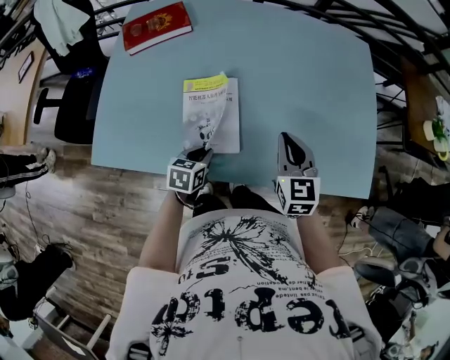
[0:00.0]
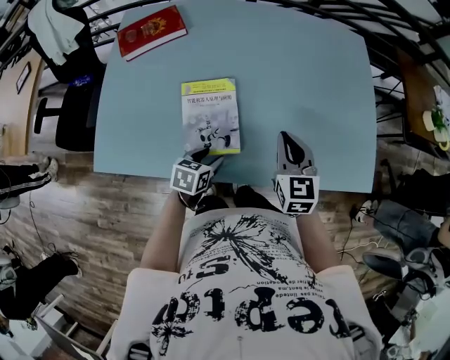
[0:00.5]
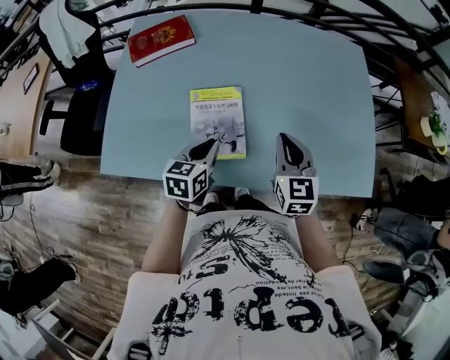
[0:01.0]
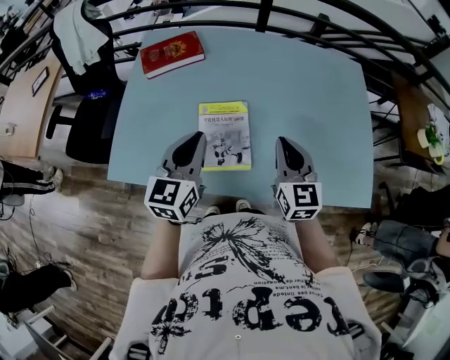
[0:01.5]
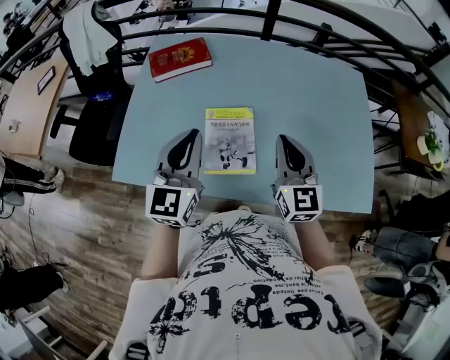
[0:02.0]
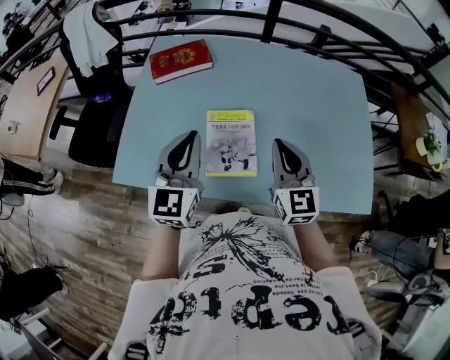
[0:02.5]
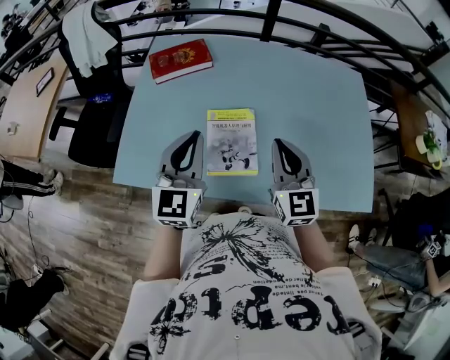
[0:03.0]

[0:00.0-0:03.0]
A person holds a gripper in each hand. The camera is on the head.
0:00.0 to 0:01.5: The right gripper shifts roughly 5 cm upward. The left gripper travels upward by approximately 25 cm, angles its fingers upward, by some 40 degrees, and opens and closes again.
0:01.5 to 0:03.0: The right gripper shifts some 5 cm to the left, while the left gripper moves approximately 5 cm.

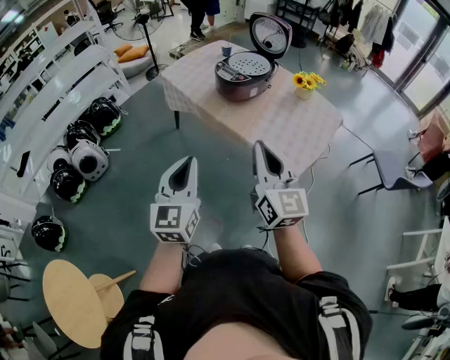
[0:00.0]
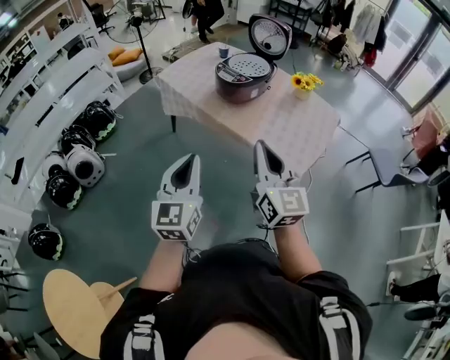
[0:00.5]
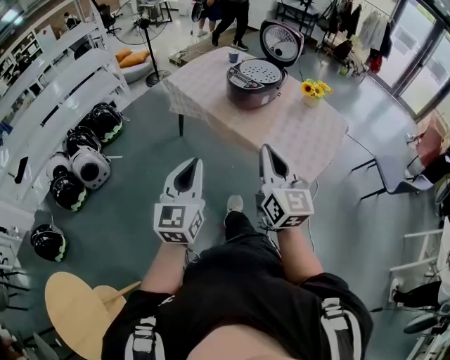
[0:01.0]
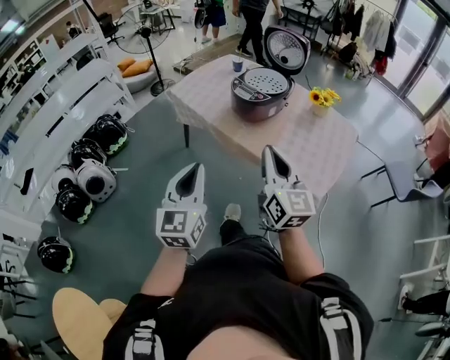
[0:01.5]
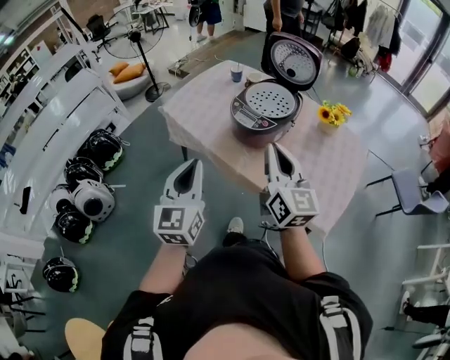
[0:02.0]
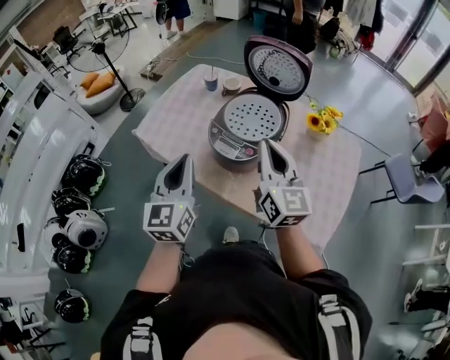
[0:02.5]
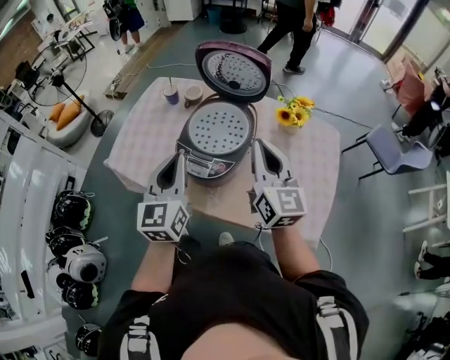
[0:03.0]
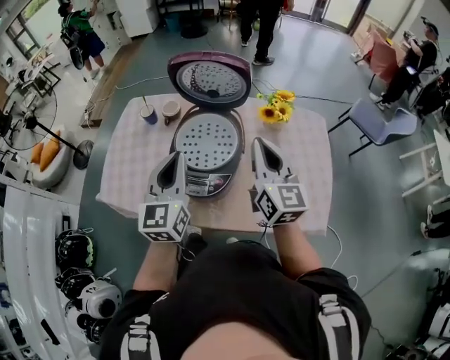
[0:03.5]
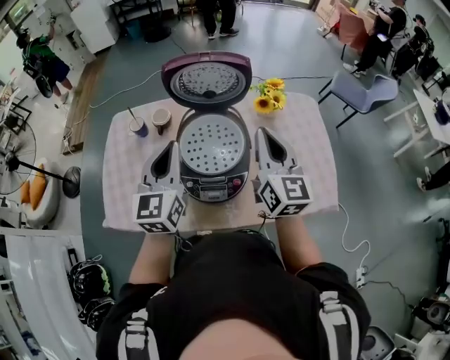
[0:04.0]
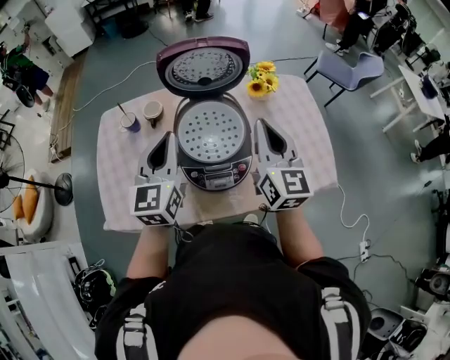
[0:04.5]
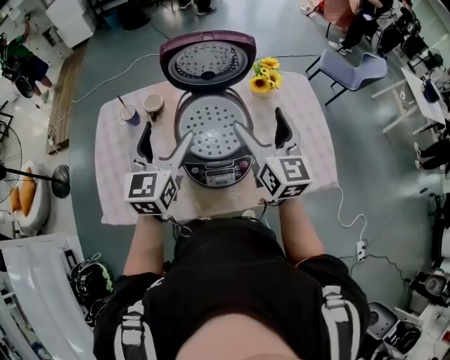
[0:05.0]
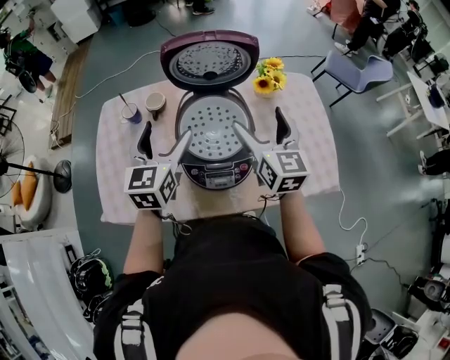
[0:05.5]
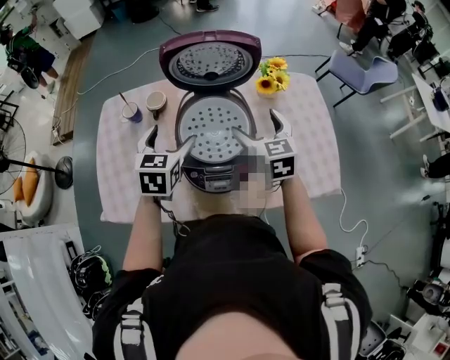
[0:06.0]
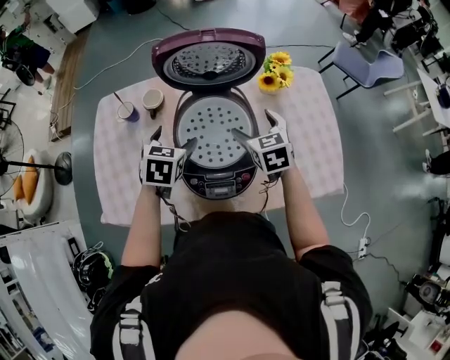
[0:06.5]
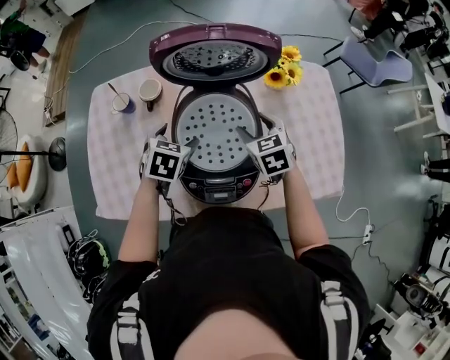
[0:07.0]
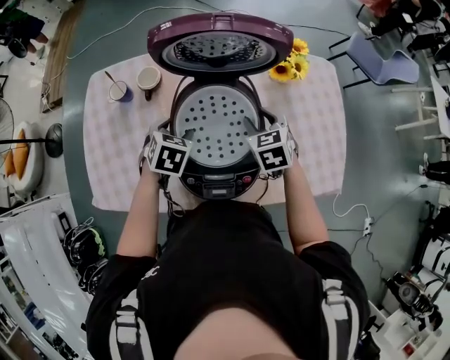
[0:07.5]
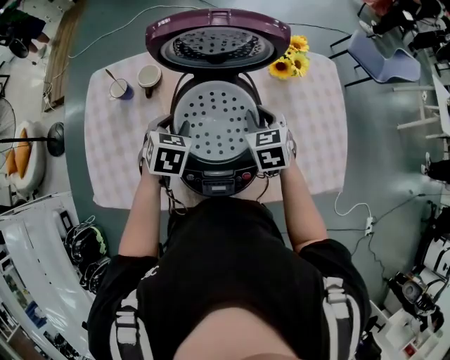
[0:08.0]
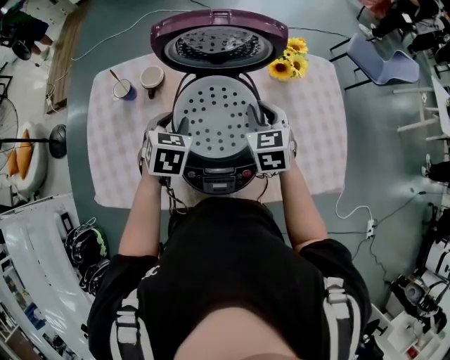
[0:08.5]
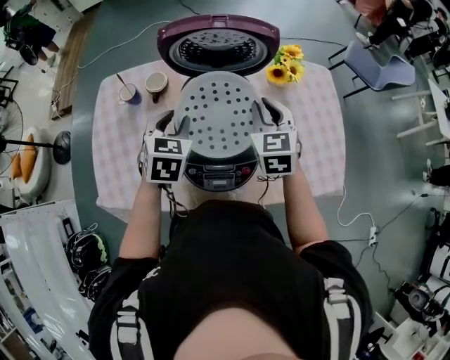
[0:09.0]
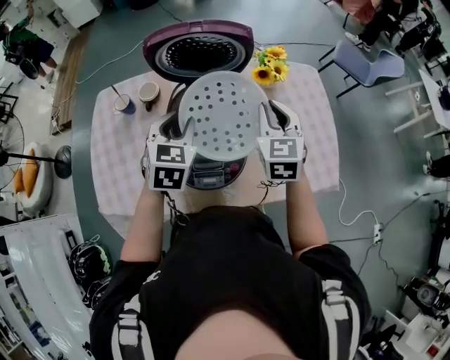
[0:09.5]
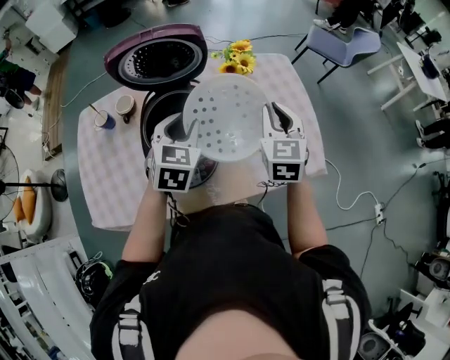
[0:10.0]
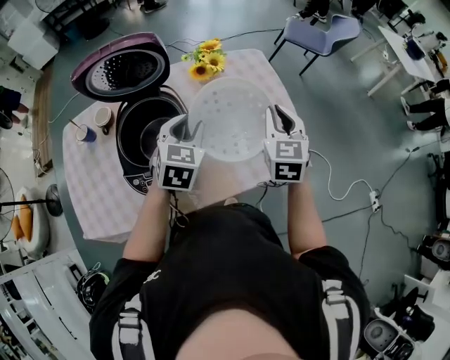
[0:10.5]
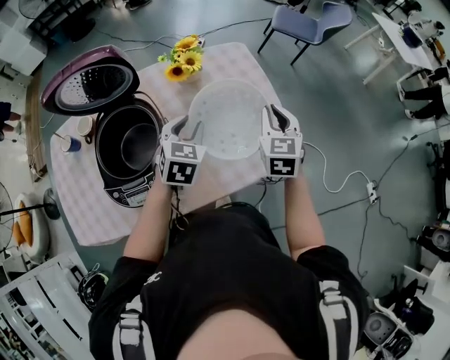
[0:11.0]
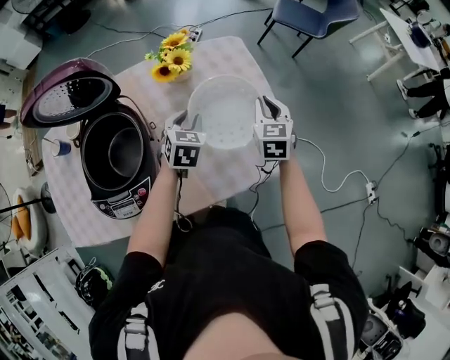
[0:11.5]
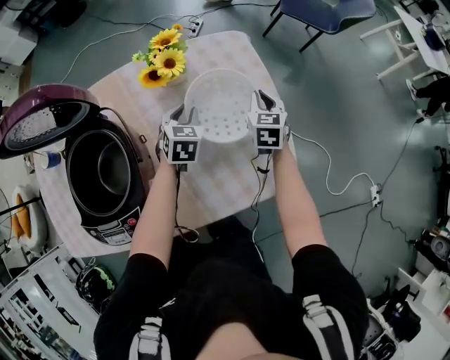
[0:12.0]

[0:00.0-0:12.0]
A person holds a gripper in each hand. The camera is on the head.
0:00.0 to 0:02.0: Both grippers move forward, roughly 30 cm.
0:02.0 to 0:04.0: The right gripper shifts by about 30 cm, and turns by approximately 40 degrees. Meanwhile the left gripper moves roughly 50 cm, and turns by some 40 degrees.
0:04.0 to 0:06.0: Both grippers travel together downward and forward, about 15 cm. The left gripper turns by about 30 degrees, and opens. The right gripper turns by about 30 degrees, and opens its fingers.
0:06.0 to 0:08.0: Both grippers travel together downward and forward, approximately 10 cm. The right gripper closes up, while the left gripper swivels some 20 degrees, and closes its fingers.
0:08.0 to 0:10.0: The right gripper moves to the right, upward and backward, approximately 25 cm, and changes its angle by about 30 degrees. Meanwhile the left gripper shifts about 20 cm to the right and upward, and turns by roughly 20 degrees.
0:10.0 to 0:12.0: The two grippers go some 40 cm downward, forward and to the right.

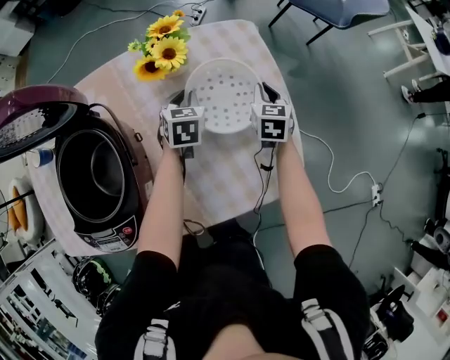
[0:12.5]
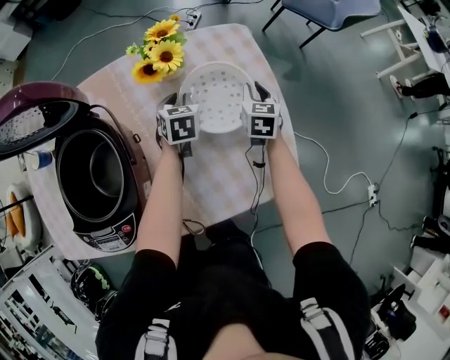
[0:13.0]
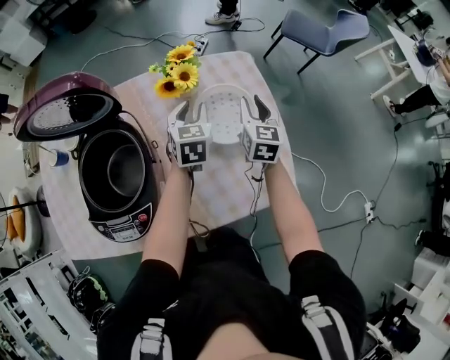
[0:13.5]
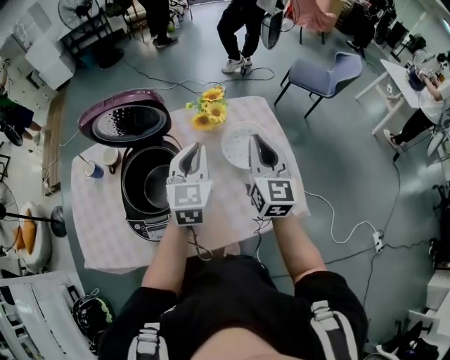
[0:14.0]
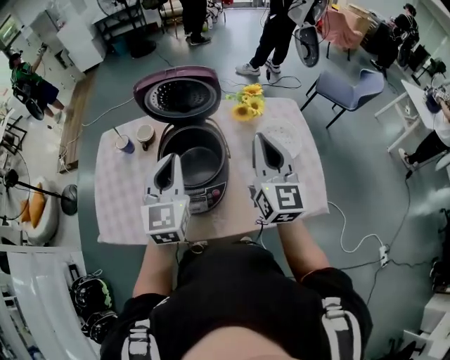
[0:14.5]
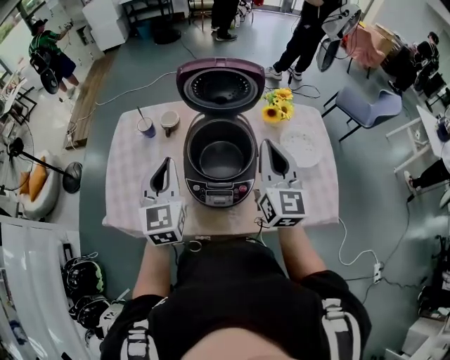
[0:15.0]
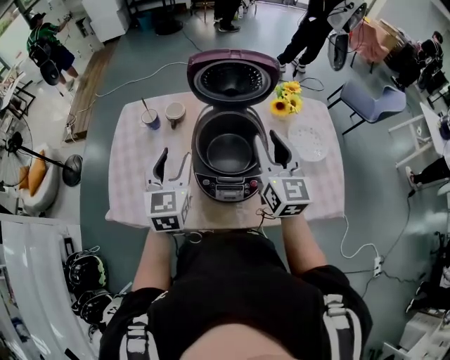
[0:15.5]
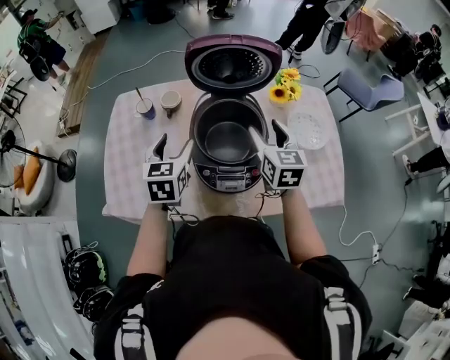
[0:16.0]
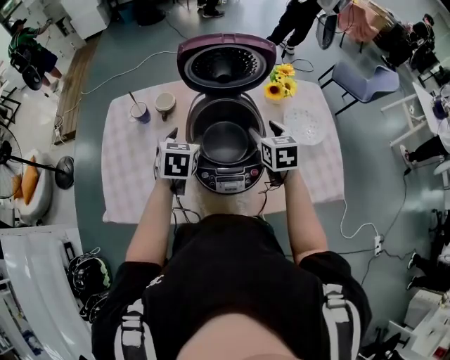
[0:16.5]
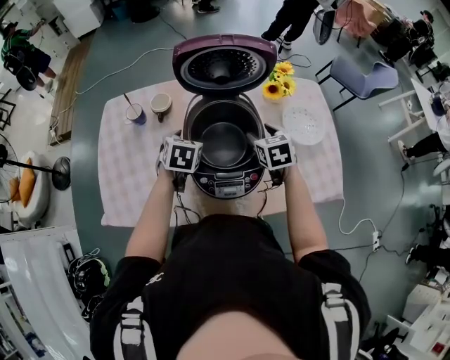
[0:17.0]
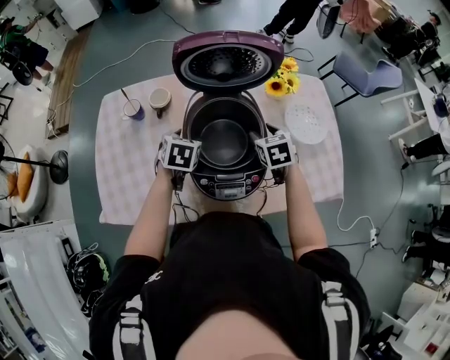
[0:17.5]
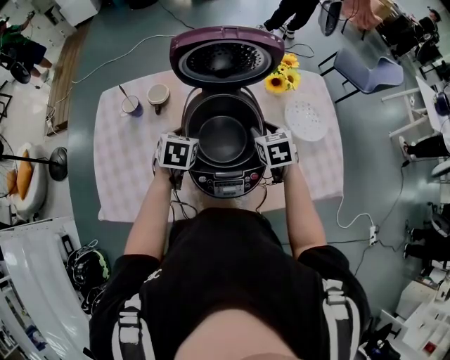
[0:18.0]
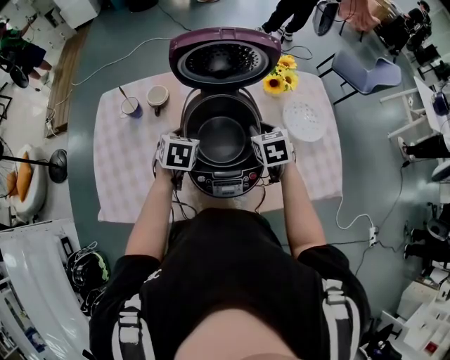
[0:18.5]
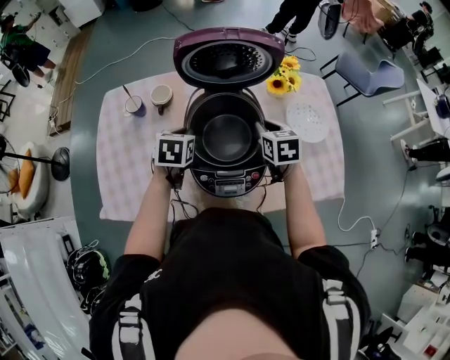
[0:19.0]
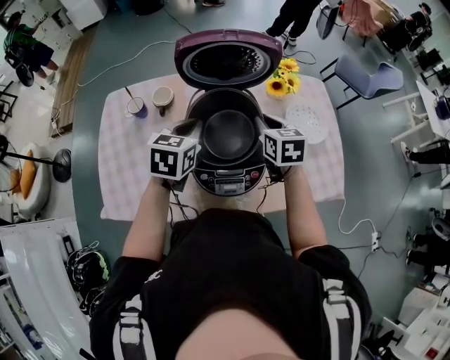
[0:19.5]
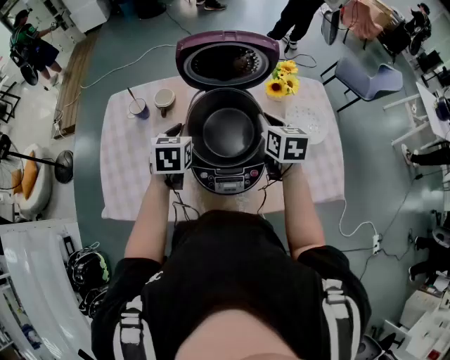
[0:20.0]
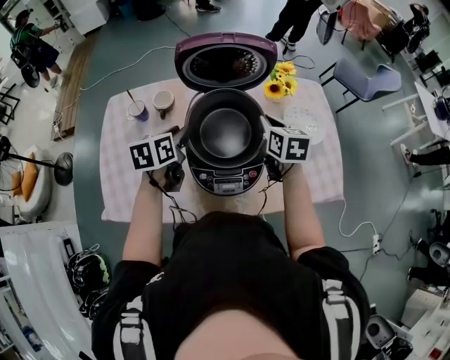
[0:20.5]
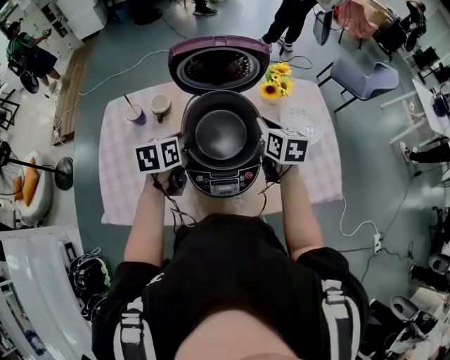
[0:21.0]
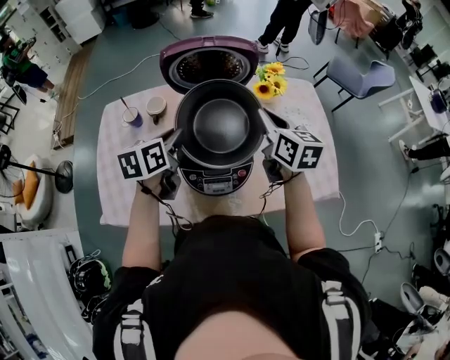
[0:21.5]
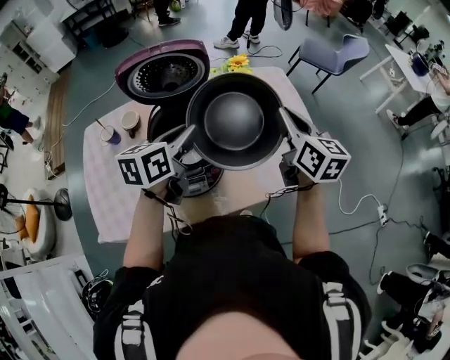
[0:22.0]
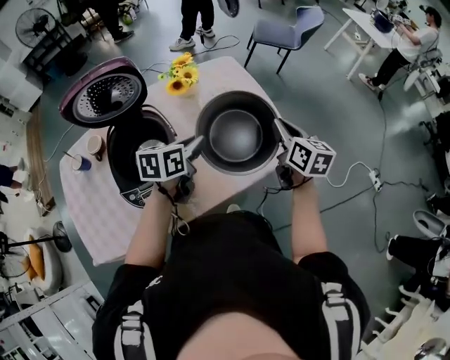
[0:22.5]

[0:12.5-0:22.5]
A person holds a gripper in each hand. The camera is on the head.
0:12.5 to 0:14.5: The left gripper moves upward, backward and to the left, some 50 cm, and points its fingers roughly 40 degrees further upward, while the right gripper shifts some 50 cm upward, to the left and backward, and tilts its fingers about 40 degrees upward.
0:14.5 to 0:16.5: Both grippers move downward, to the left and forward, roughly 25 cm. The right gripper tips its fingers downward by roughly 40 degrees, and opens; the left gripper angles its fingers downward, by approximately 30 degrees, and opens.
0:16.5 to 0:18.5: The grippers both shift downward by some 5 cm.
0:18.5 to 0:20.5: Both grippers travel together upward, some 10 cm. The right gripper turns by some 20 degrees, while the left gripper rotates about 30 degrees.
0:20.5 to 0:22.5: The left gripper moves approximately 10 cm upward and comes back, and changes its angle by about 30 degrees, while the right gripper travels upward and back again, roughly 10 cm each way, and rotates some 30 degrees.

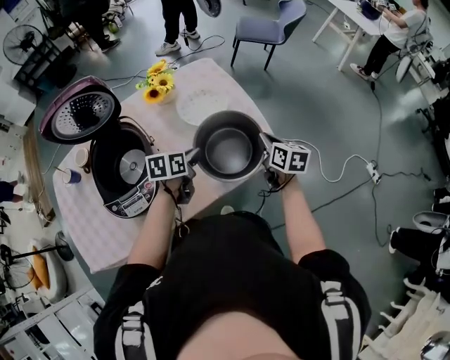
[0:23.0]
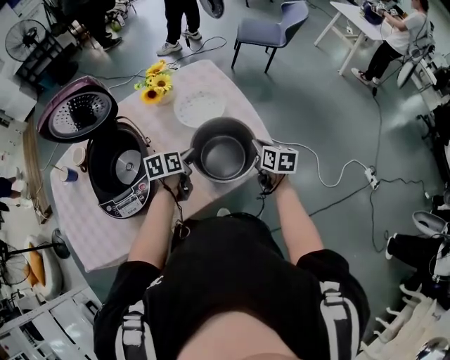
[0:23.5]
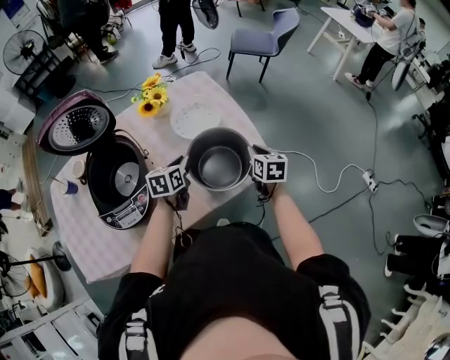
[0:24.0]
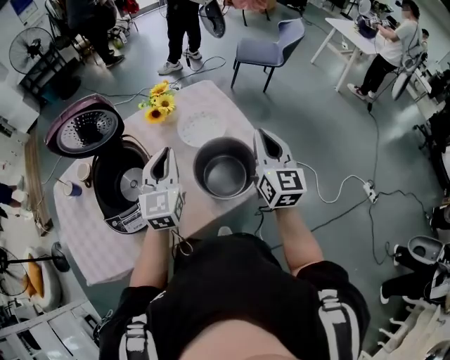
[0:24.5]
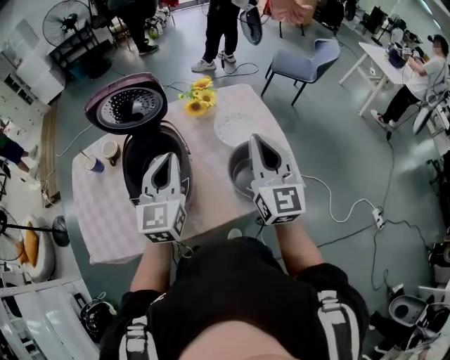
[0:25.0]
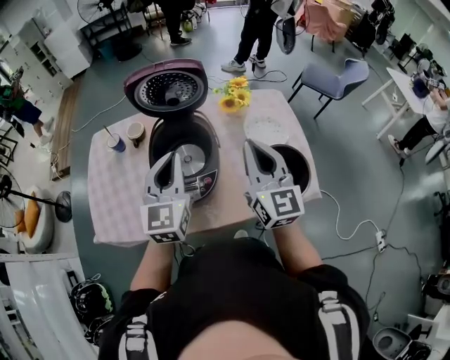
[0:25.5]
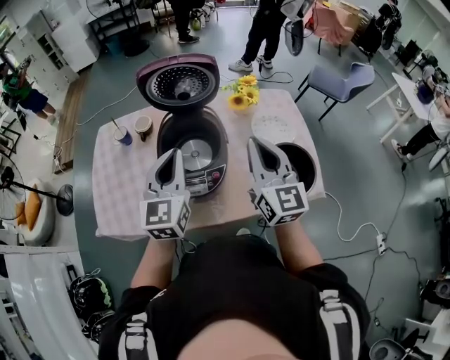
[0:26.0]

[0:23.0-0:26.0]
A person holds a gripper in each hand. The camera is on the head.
0:23.0 to 0:24.5: Both grippers travel together upward, approximately 20 cm. The left gripper tilts its fingers roughly 30 degrees upward. Meanwhile the right gripper swivels about 40 degrees.
0:24.5 to 0:26.0: The grippers both shift to the left by about 25 cm. The right gripper rotates approximately 30 degrees.
